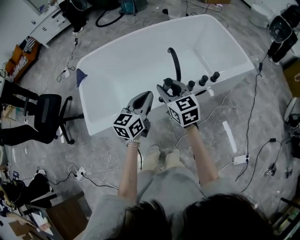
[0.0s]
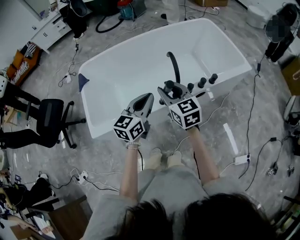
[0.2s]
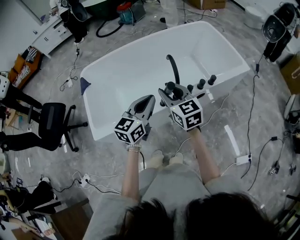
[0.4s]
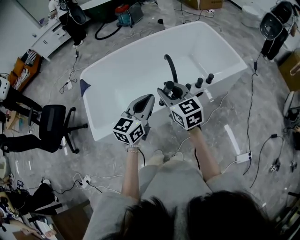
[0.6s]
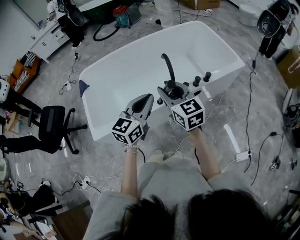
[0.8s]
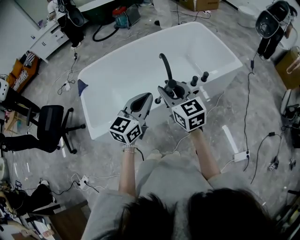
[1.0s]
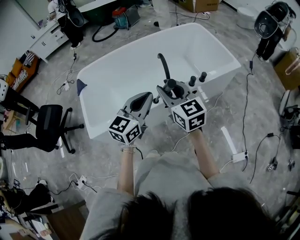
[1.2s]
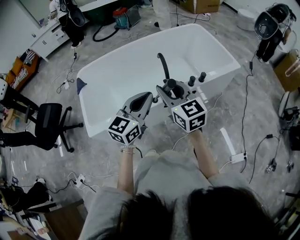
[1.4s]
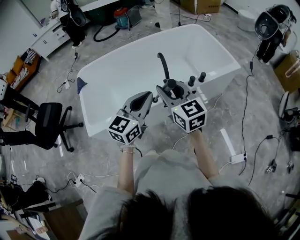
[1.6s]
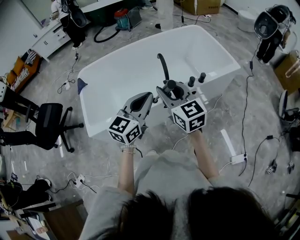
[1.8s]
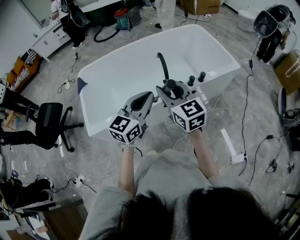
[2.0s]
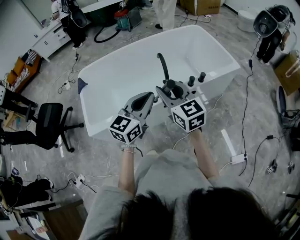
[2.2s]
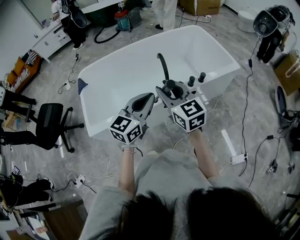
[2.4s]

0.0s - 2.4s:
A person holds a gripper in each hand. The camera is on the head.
0.0s - 1.2s: Both grippers travel together upward, backward and to the right, some 15 cm.
1.2s - 2.4s: The grippers stay close to where they were, moving slightly.

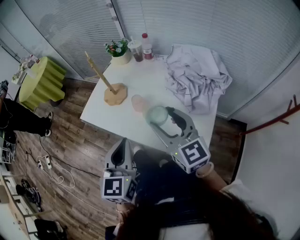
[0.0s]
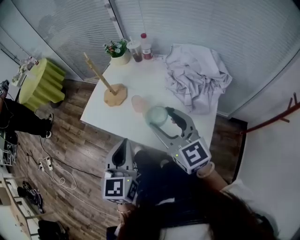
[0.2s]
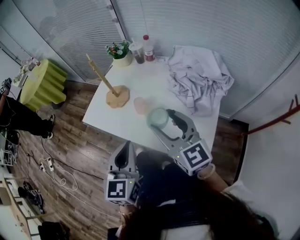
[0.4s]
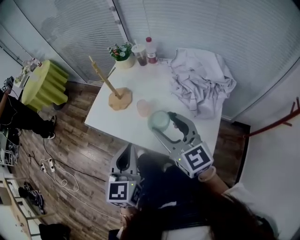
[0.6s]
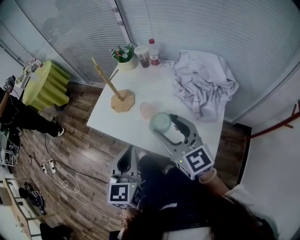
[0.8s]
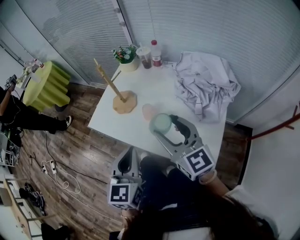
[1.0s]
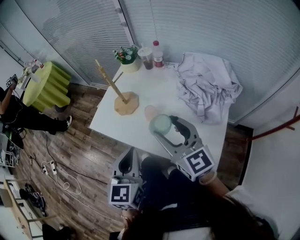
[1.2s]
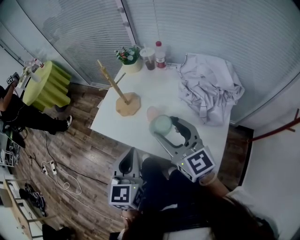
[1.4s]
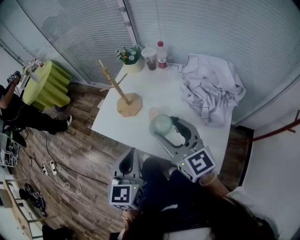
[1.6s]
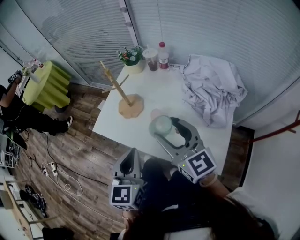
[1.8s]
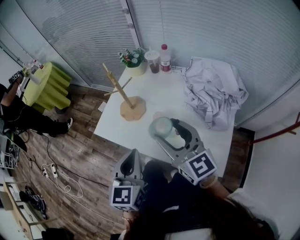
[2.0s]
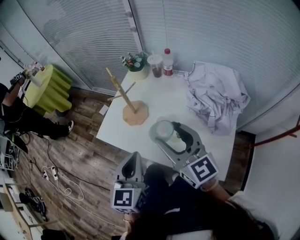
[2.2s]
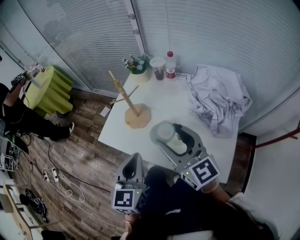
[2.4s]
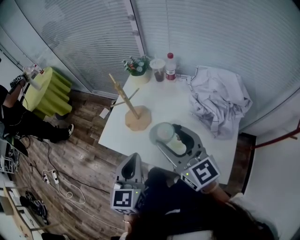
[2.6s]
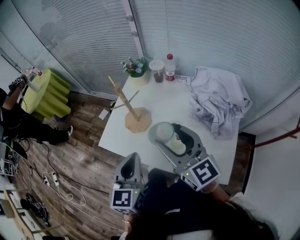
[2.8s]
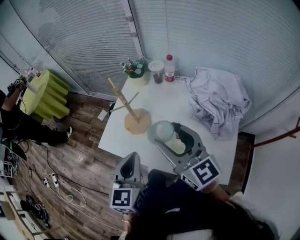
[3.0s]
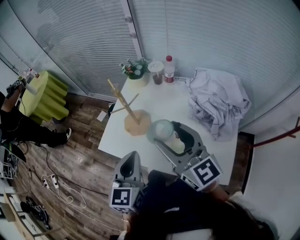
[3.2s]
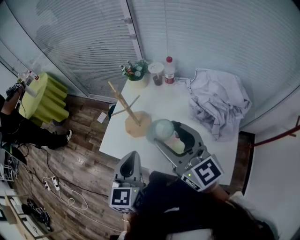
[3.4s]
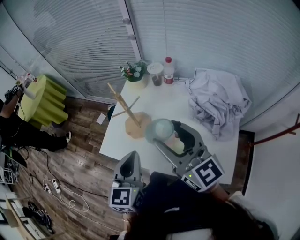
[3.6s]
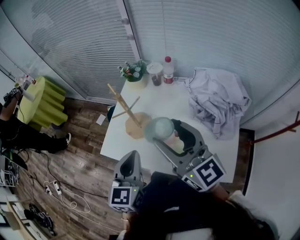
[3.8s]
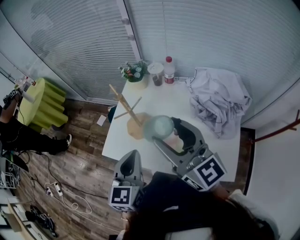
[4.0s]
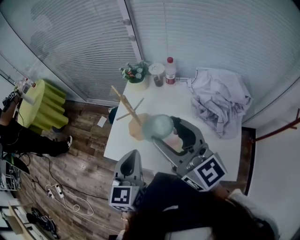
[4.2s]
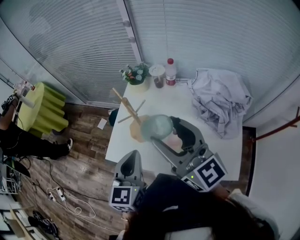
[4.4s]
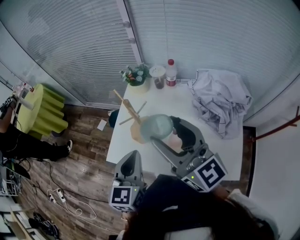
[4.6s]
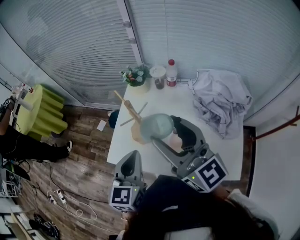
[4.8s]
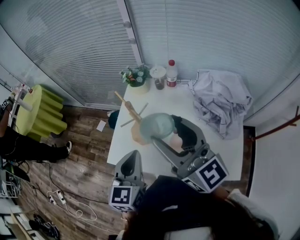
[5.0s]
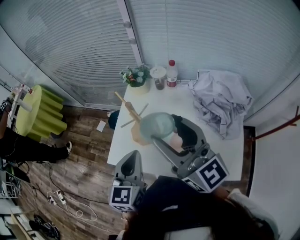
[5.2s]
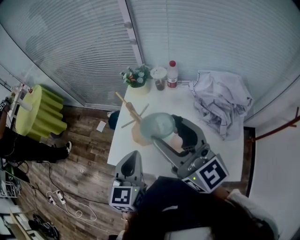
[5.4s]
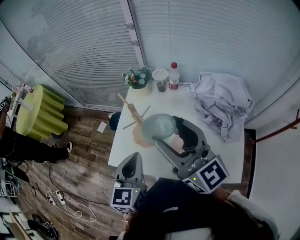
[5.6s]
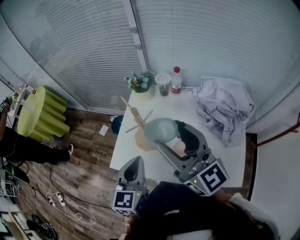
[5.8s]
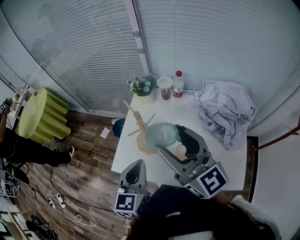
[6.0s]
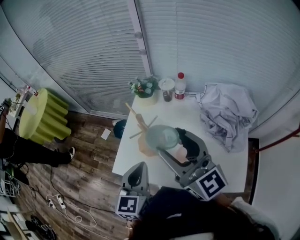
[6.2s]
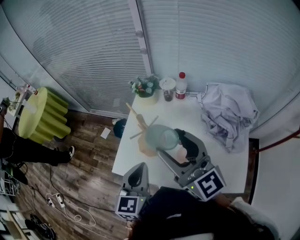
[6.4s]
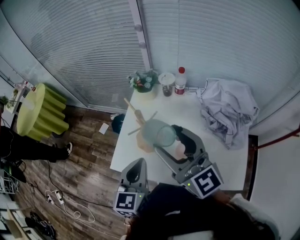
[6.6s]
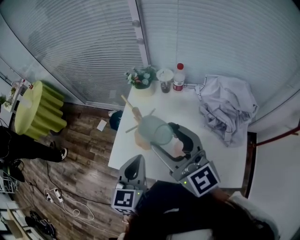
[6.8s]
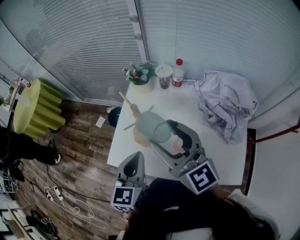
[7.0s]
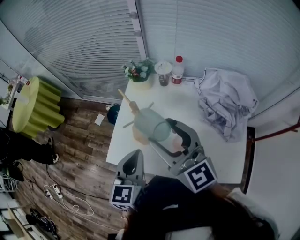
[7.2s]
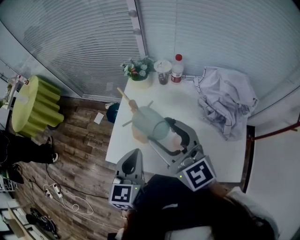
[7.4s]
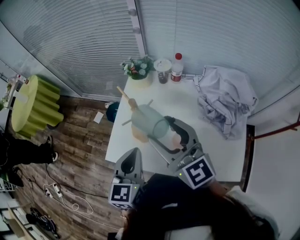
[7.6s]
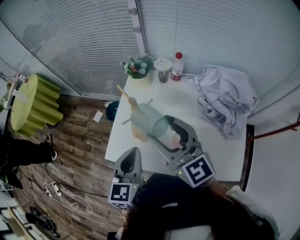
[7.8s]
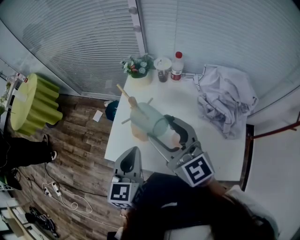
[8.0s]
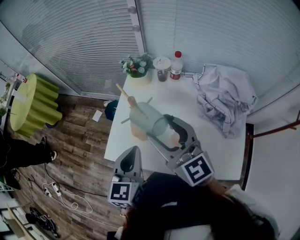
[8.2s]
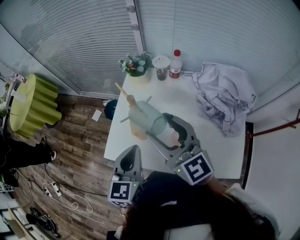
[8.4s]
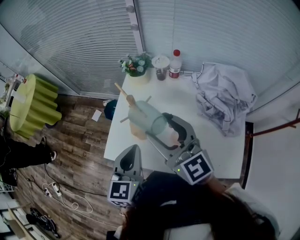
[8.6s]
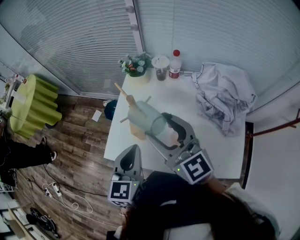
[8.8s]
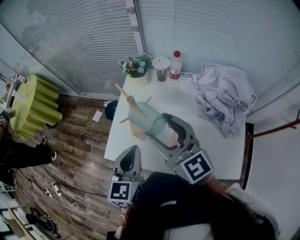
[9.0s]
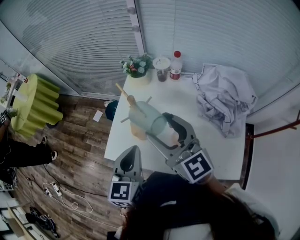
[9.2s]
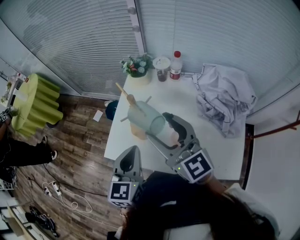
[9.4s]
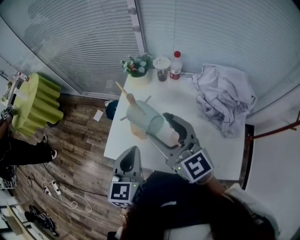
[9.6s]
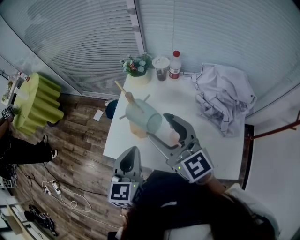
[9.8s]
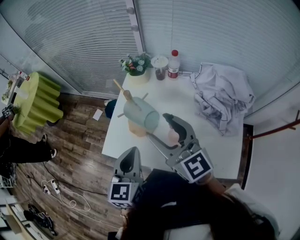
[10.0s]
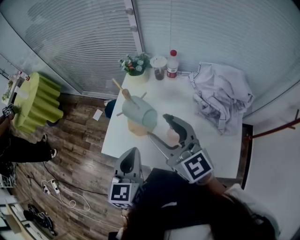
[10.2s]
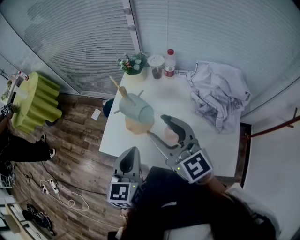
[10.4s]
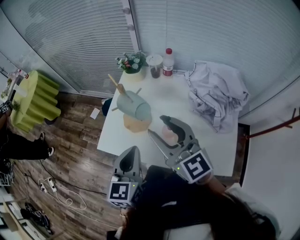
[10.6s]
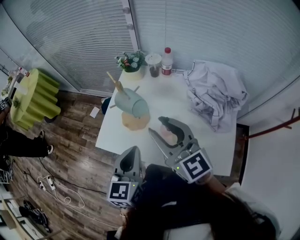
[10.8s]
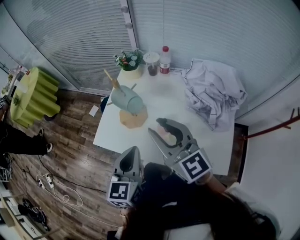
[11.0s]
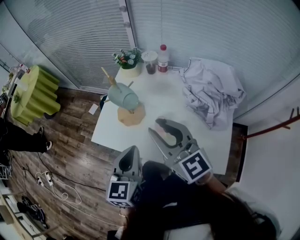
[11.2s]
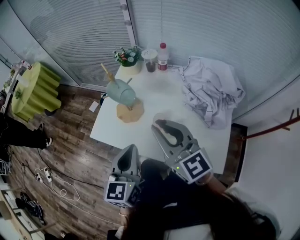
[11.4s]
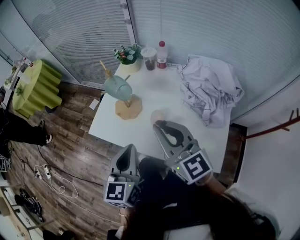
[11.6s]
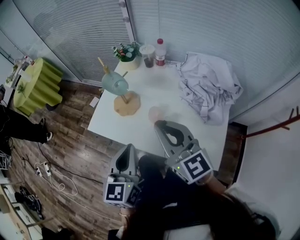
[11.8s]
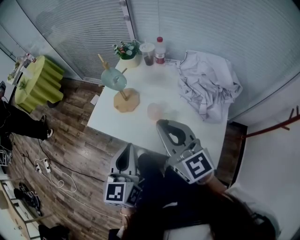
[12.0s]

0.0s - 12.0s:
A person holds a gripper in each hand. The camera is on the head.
0.0s - 1.6s: The left gripper ends up some 5 cm from where it was; the right gripper heads to the left, covering roughly 5 cm.
1.6s - 3.0s: Both grippers move forward, about 5 cm.
3.0s - 4.4s: The left gripper shifts about 5 cm forward. Meanwhile the right gripper is displaced upward by roughly 5 cm.
4.4s - 6.0s: There are only small adjustments of the grippers.
6.0s - 7.6s: The right gripper shifts roughly 5 cm downward.
7.6s - 9.0s: Both grippers stay put.
9.0s - 10.4s: The left gripper changes place by about 5 cm.
10.4s - 12.0s: The two grippers go roughly 15 cm backward and to the right. The right gripper closes.

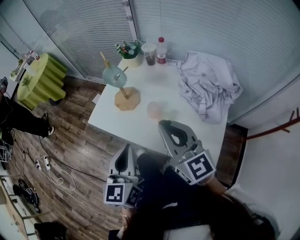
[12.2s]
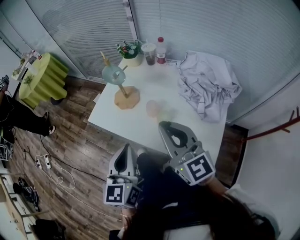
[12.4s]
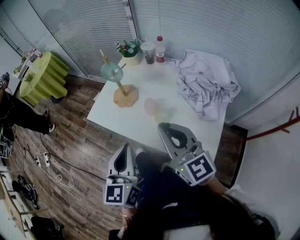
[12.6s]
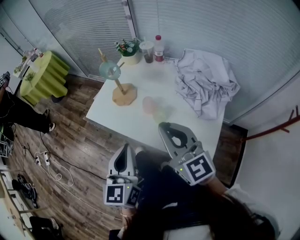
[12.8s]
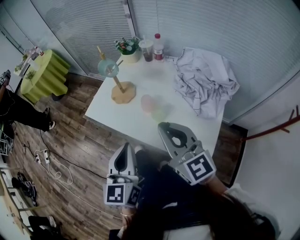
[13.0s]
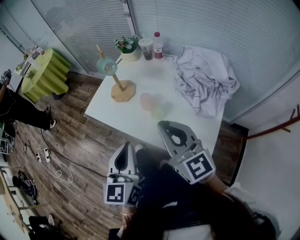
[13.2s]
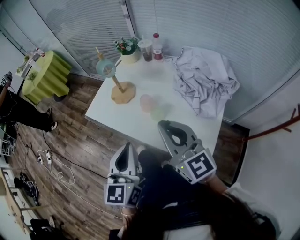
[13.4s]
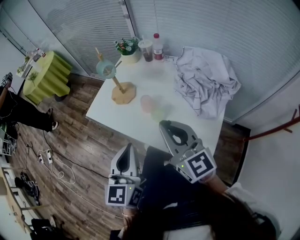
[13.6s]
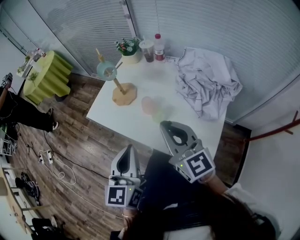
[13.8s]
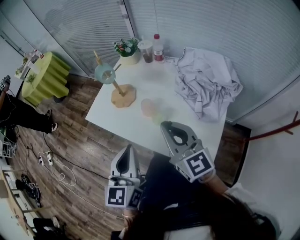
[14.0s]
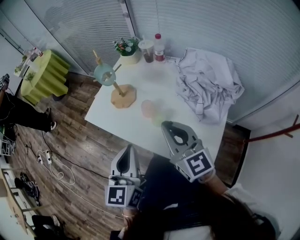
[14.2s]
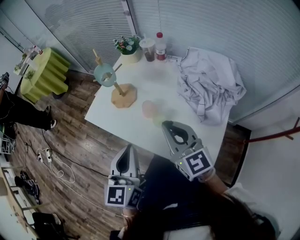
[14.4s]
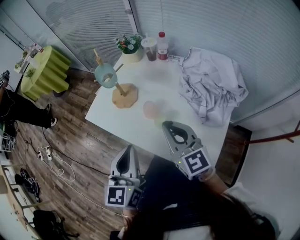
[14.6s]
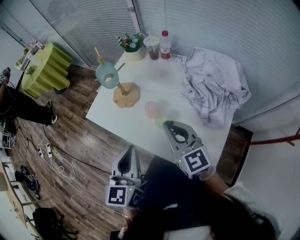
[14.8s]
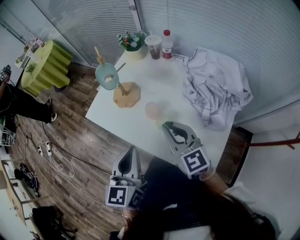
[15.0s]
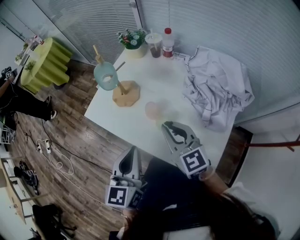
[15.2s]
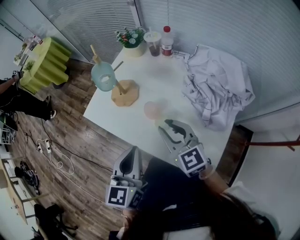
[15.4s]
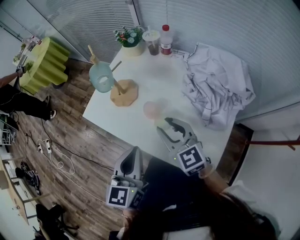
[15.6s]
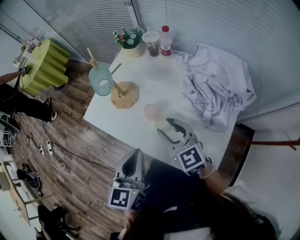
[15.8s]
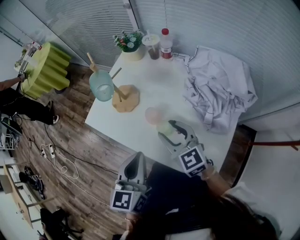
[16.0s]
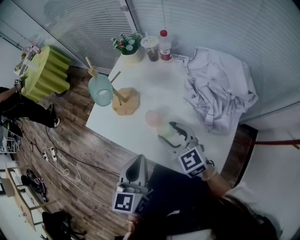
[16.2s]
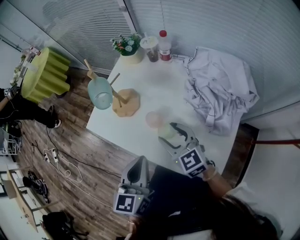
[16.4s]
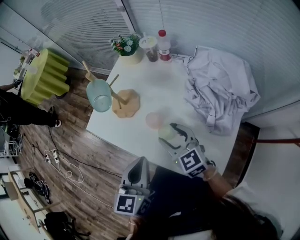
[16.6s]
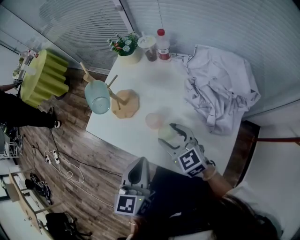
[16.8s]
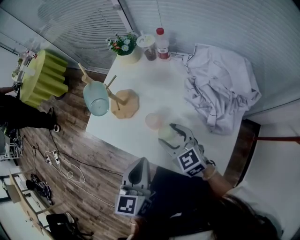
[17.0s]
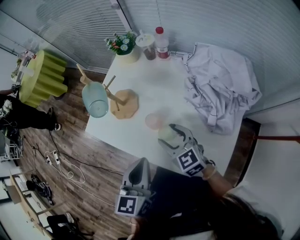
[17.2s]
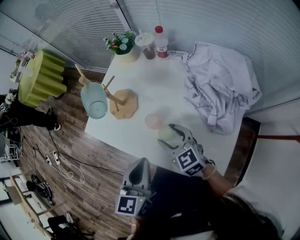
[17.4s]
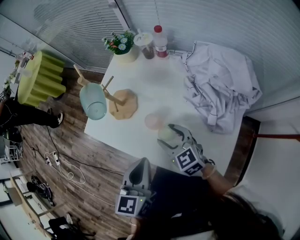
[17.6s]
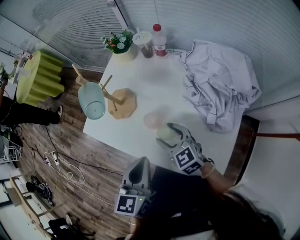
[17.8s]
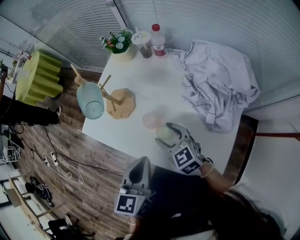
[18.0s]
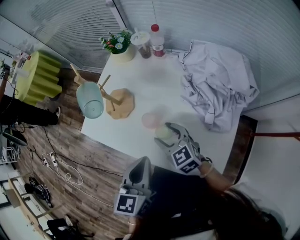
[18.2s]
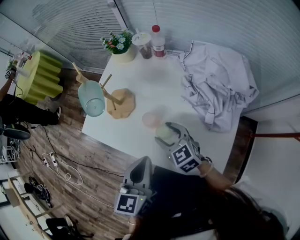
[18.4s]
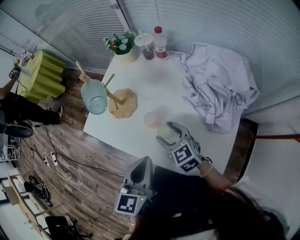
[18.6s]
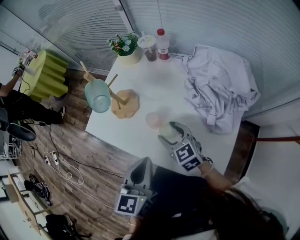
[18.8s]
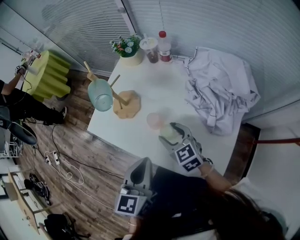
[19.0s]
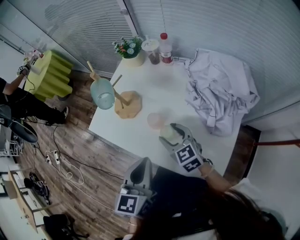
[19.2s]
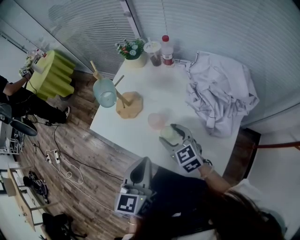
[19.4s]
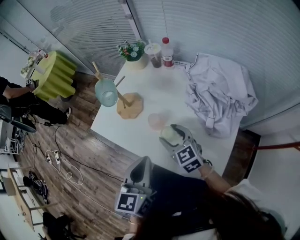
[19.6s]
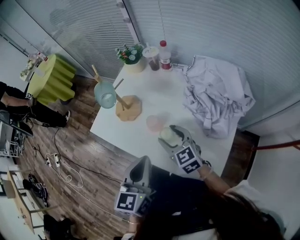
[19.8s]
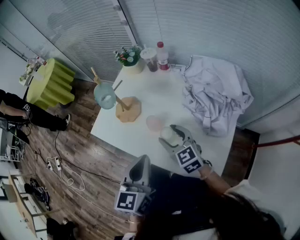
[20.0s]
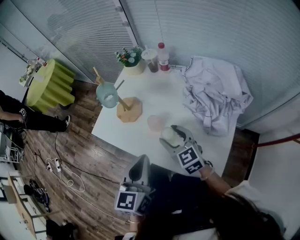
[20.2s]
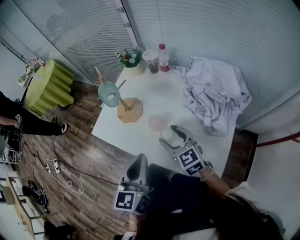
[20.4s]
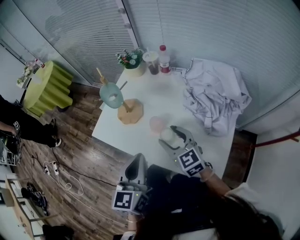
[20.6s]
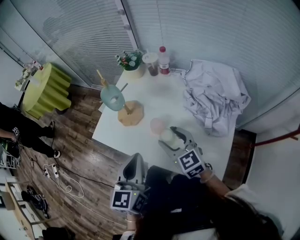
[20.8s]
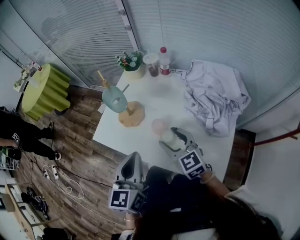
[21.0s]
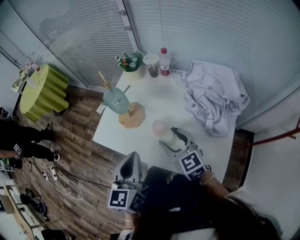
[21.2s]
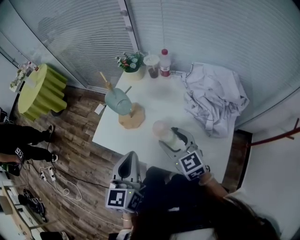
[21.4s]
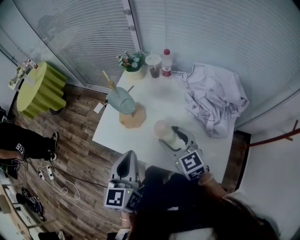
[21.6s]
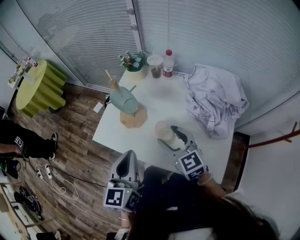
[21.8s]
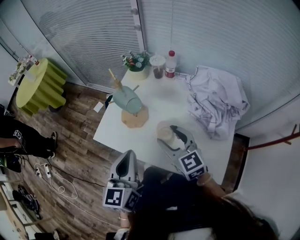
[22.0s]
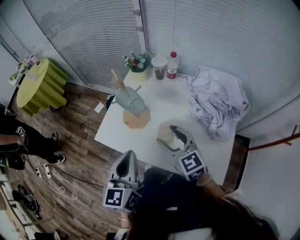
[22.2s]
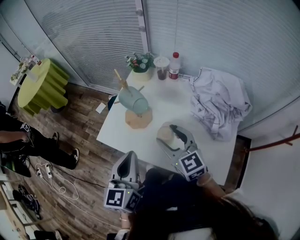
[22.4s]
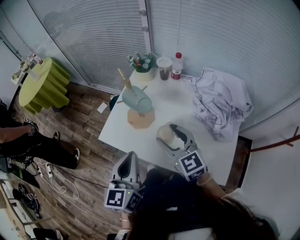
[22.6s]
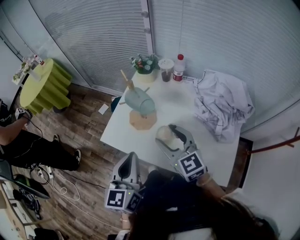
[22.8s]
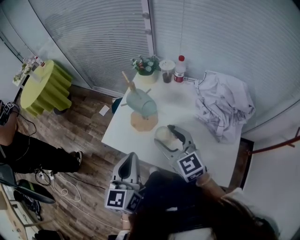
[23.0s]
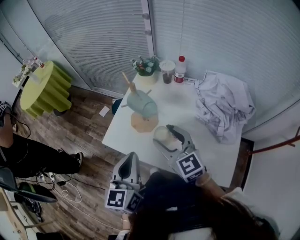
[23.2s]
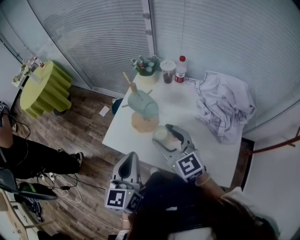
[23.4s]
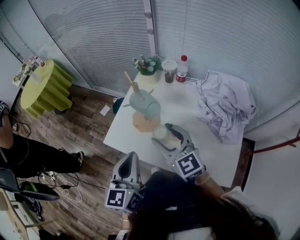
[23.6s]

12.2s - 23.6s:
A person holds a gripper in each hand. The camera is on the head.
12.2s - 13.6s: The left gripper goes approximately 5 cm backward. The right gripper moves approximately 5 cm.
13.6s - 15.0s: The left gripper shifts about 5 cm forward, while the right gripper is displaced downward and forward by approximately 10 cm.
15.0s - 16.4s: The right gripper moves downward, about 5 cm, and opens up.
16.4s - 17.8s: The right gripper travels downward by about 5 cm.
17.8s - 19.4s: There are only small adjustments of the grippers.
19.4s - 20.8s: The right gripper heads upward, covering about 5 cm. The left gripper changes place by some 5 cm.
20.8s - 22.2s: The left gripper is displaced to the left by some 5 cm. Meanwhile the right gripper moves roughly 5 cm.
22.2s - 23.6s: The right gripper shifts roughly 5 cm to the left.
